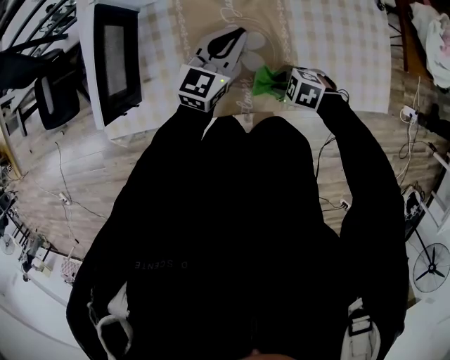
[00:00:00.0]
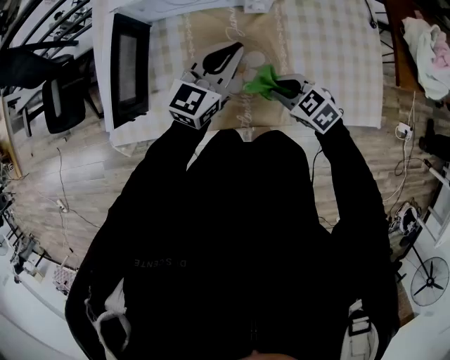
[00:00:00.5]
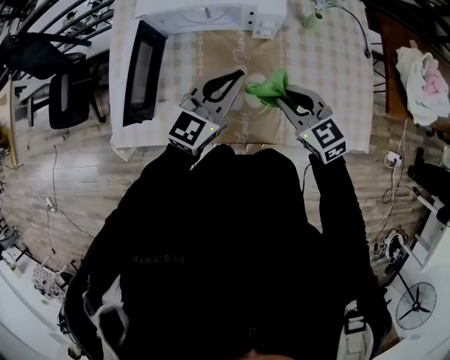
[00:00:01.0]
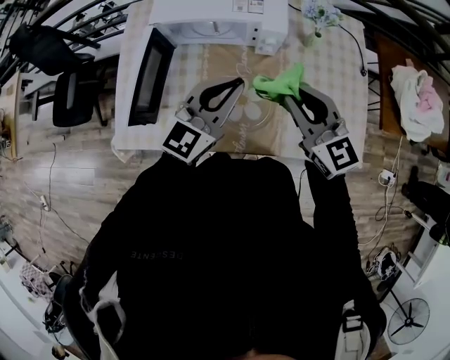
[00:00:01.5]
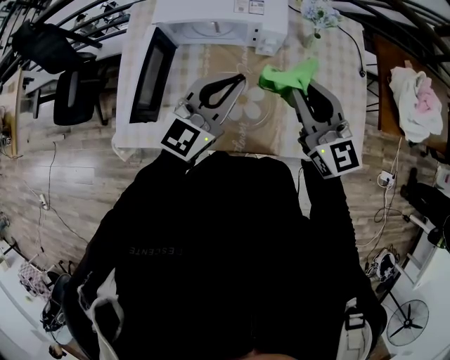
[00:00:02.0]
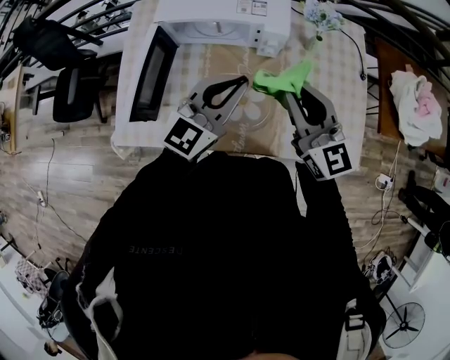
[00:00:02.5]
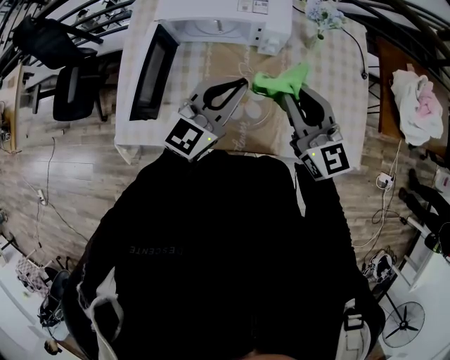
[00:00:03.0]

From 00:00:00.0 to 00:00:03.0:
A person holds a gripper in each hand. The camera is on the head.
From 00:00:00.0 to 00:00:01.5: The right gripper goes approximately 35 cm upward, and points its fingers some 50 degrees further upward; the left gripper moves upward, roughly 20 cm.
From 00:00:01.5 to 00:00:03.0: There are only small adjustments of the grippers.

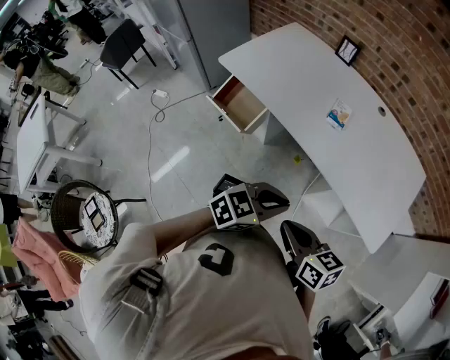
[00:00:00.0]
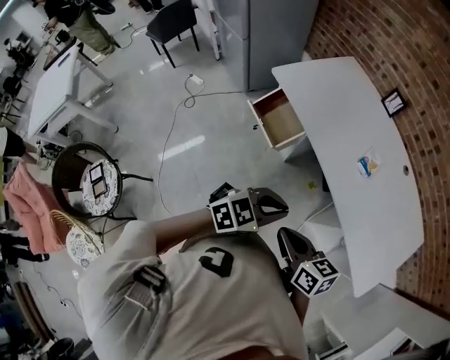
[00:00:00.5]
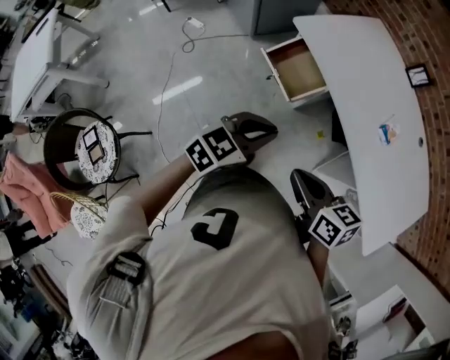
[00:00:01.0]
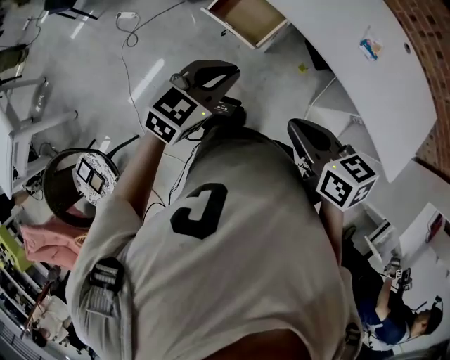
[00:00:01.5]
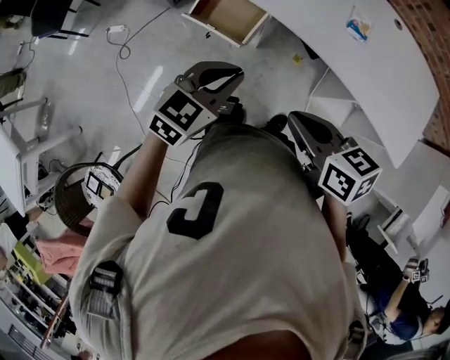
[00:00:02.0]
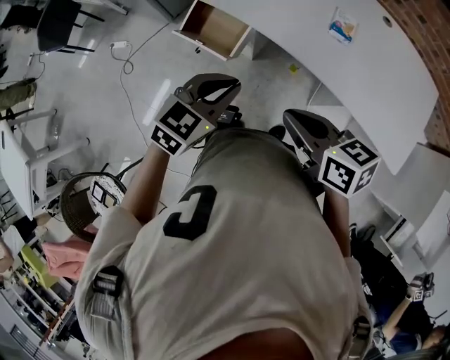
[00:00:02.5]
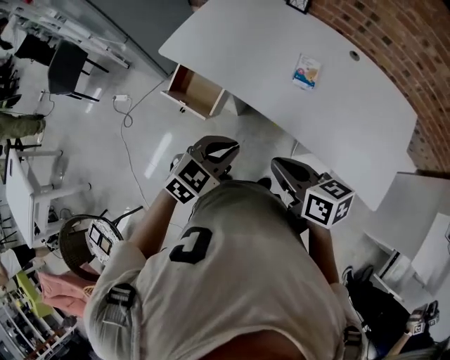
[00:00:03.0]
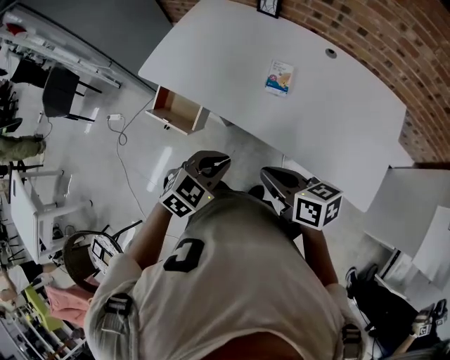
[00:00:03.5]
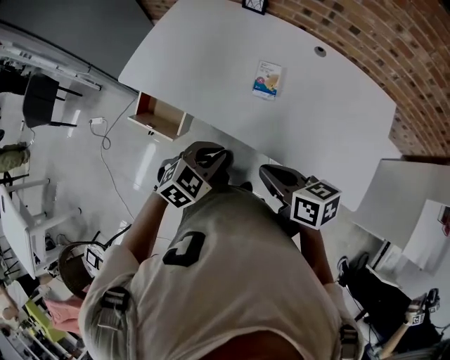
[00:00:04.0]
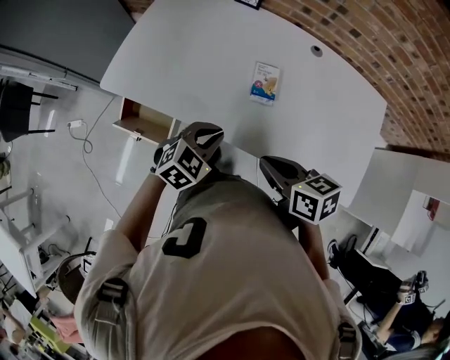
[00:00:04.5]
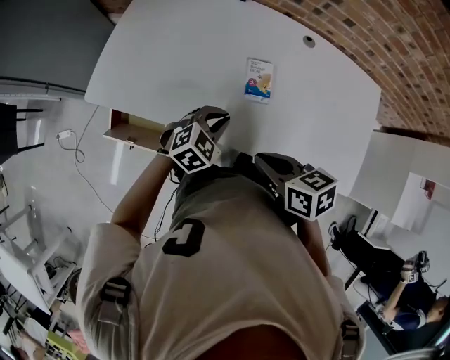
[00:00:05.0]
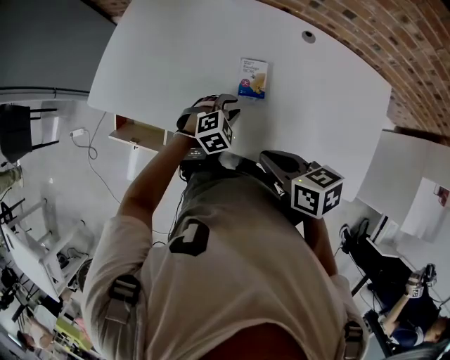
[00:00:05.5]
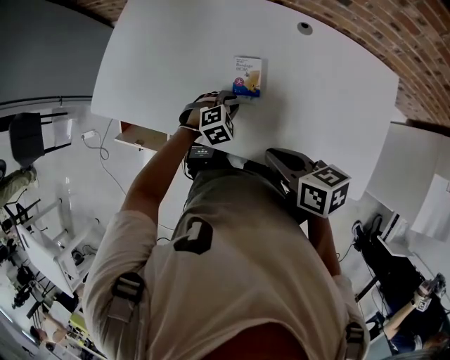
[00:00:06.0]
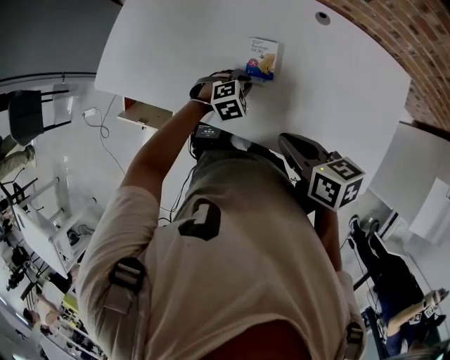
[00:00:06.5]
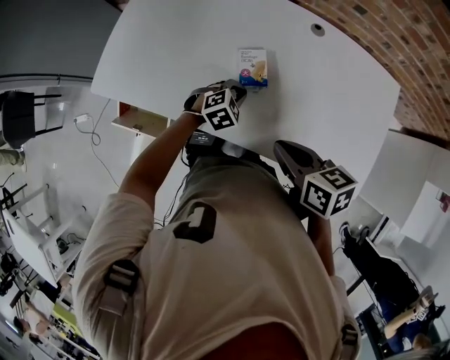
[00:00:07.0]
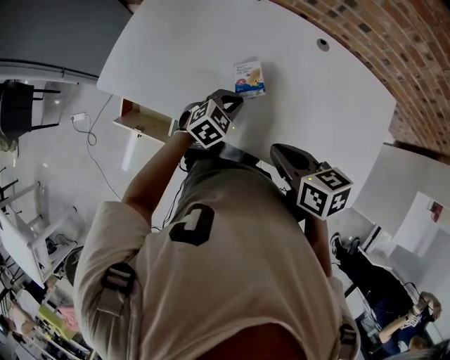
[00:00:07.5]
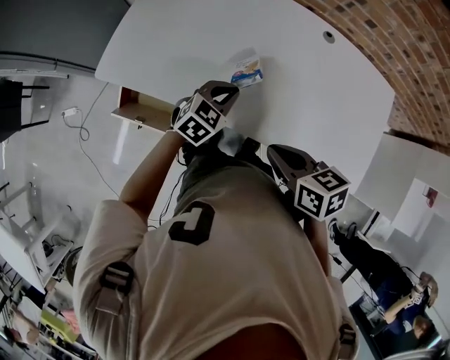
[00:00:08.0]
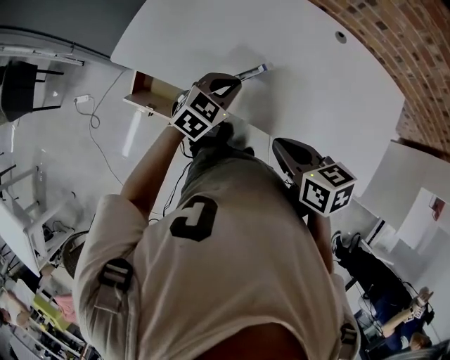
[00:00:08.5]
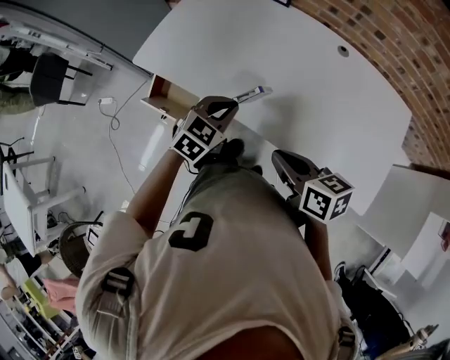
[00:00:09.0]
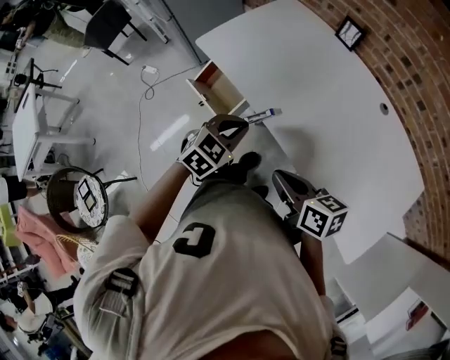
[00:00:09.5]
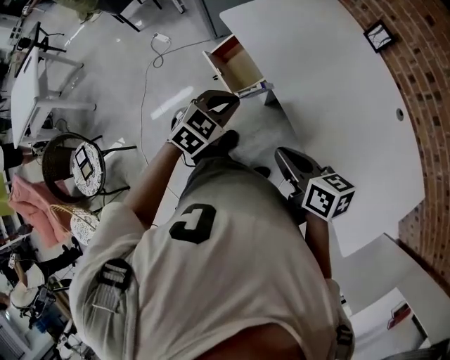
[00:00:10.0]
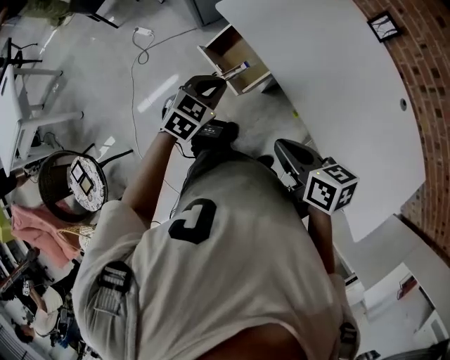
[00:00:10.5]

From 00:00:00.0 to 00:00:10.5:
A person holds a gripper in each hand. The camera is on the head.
From 00:00:00.0 to 00:00:02.0: The grippers both shift to the left and forward by some 25 cm.
From 00:00:02.0 to 00:00:04.0: The left gripper heads to the right, covering approximately 25 cm, and changes its angle by about 20 degrees. Meanwhile the right gripper goes roughly 25 cm to the right and forward.
From 00:00:04.0 to 00:00:06.5: The left gripper heads forward and downward, covering about 30 cm, and changes its angle by approximately 30 degrees. Meanwhile the right gripper is displaced forward by about 15 cm.
From 00:00:06.5 to 00:00:08.5: The right gripper travels to the left and backward by roughly 10 cm, while the left gripper shifts approximately 20 cm upward and to the left, and turns by some 40 degrees.
From 00:00:08.5 to 00:00:10.5: The right gripper moves roughly 20 cm, and turns by about 30 degrees; the left gripper ends up some 30 cm from where it was, and changes its angle by some 30 degrees.

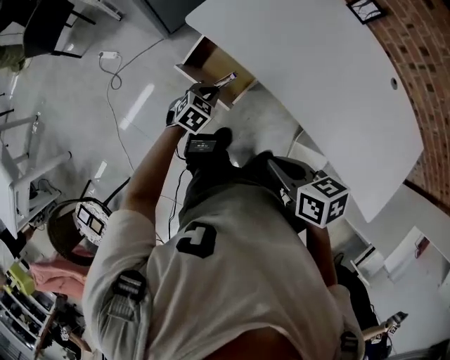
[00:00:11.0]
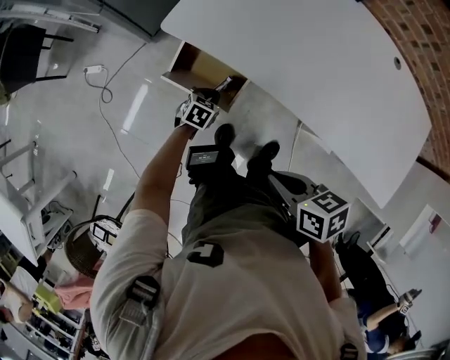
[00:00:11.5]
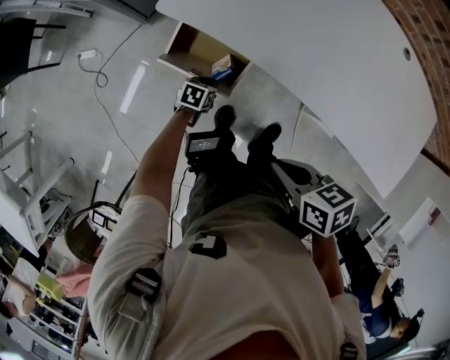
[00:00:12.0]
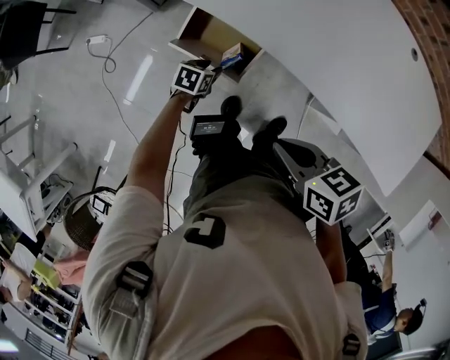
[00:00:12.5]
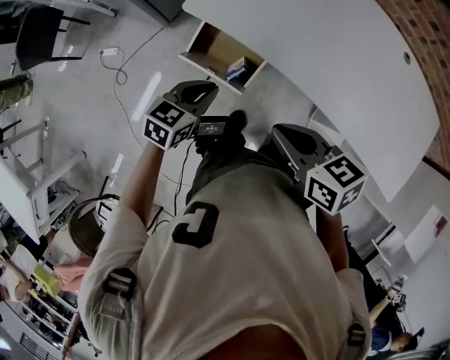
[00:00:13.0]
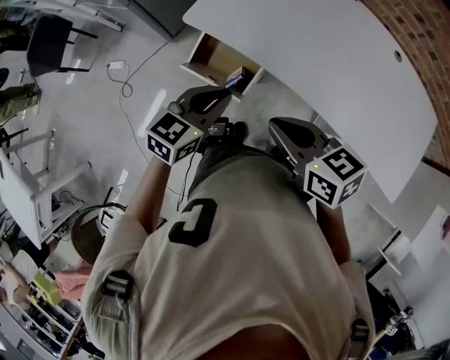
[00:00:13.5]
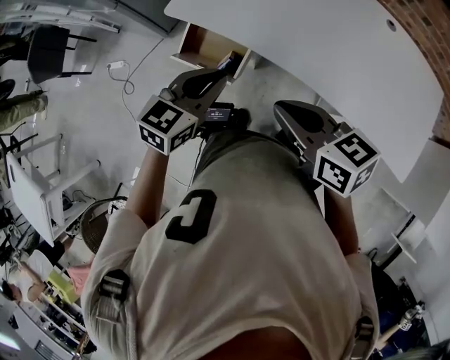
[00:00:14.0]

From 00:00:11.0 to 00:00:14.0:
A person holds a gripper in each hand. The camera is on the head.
From 00:00:11.0 to 00:00:12.5: The left gripper goes about 10 cm downward, rotates approximately 30 degrees, and opens its fingers.
From 00:00:12.5 to 00:00:14.0: The left gripper travels upward by some 35 cm, points its fingers about 30 degrees further upward, and closes its fingers; the right gripper moves upward, approximately 10 cm, and turns by some 20 degrees.

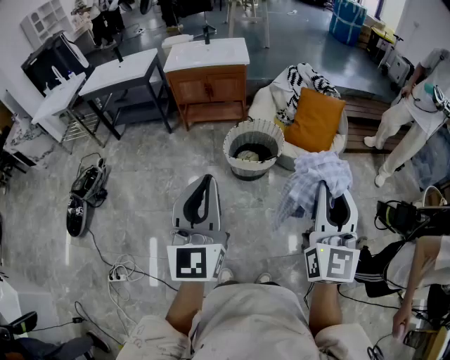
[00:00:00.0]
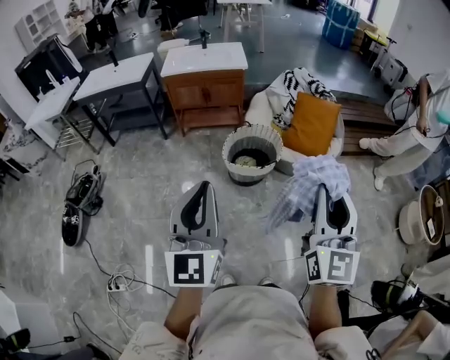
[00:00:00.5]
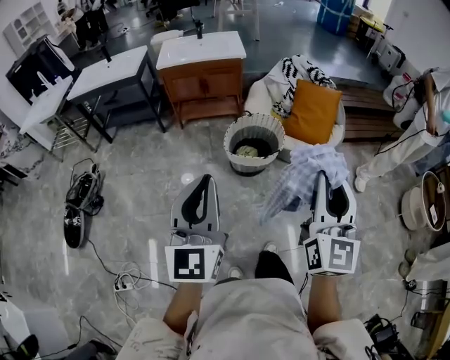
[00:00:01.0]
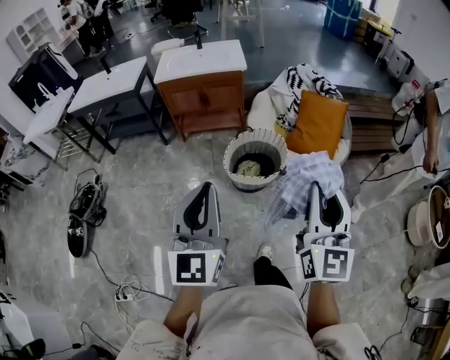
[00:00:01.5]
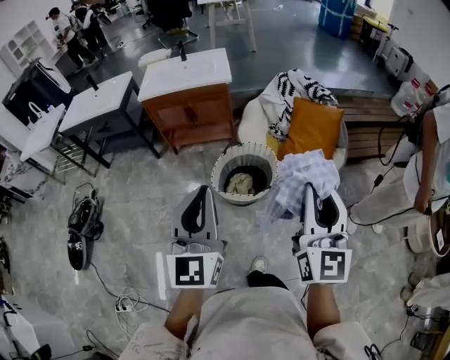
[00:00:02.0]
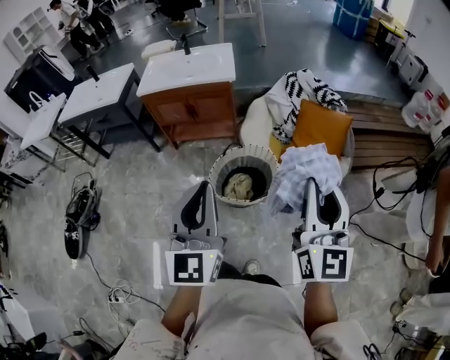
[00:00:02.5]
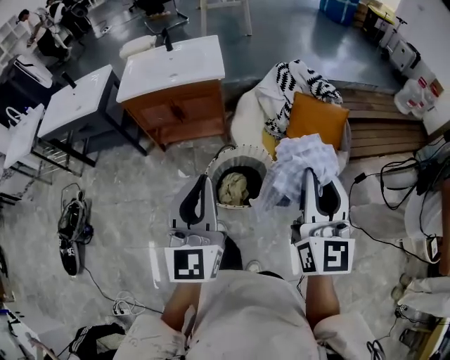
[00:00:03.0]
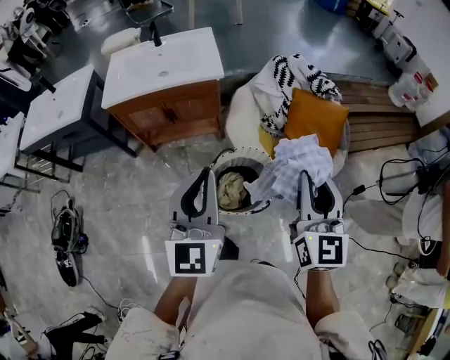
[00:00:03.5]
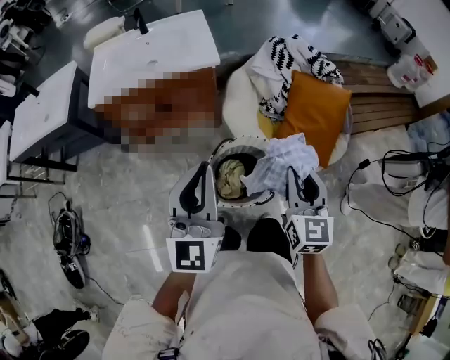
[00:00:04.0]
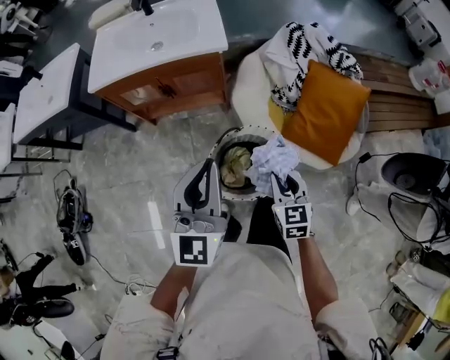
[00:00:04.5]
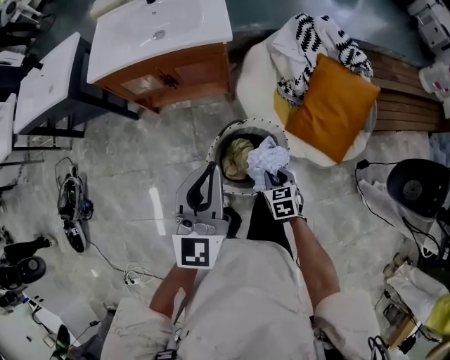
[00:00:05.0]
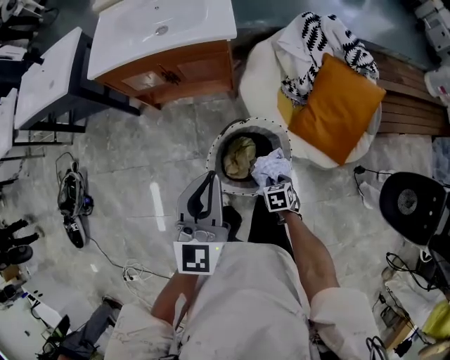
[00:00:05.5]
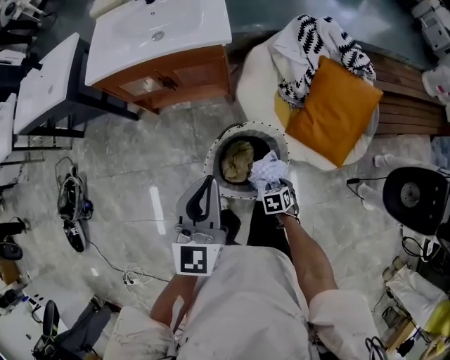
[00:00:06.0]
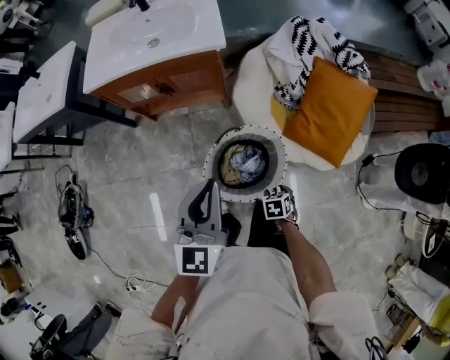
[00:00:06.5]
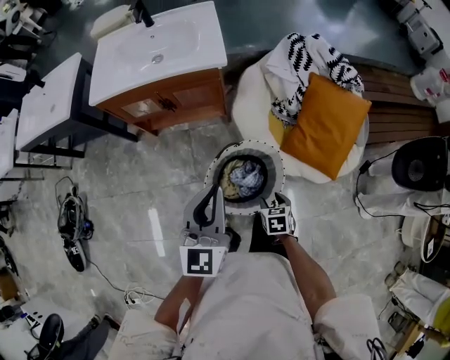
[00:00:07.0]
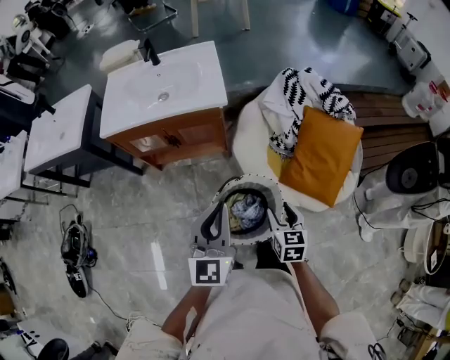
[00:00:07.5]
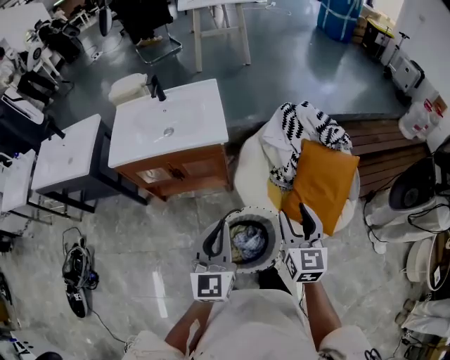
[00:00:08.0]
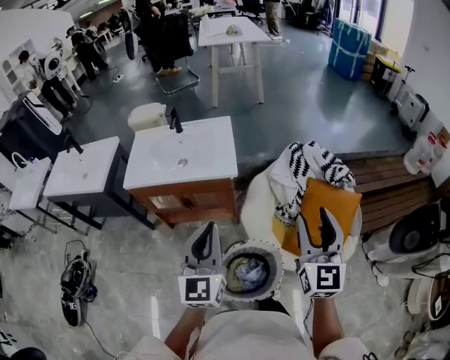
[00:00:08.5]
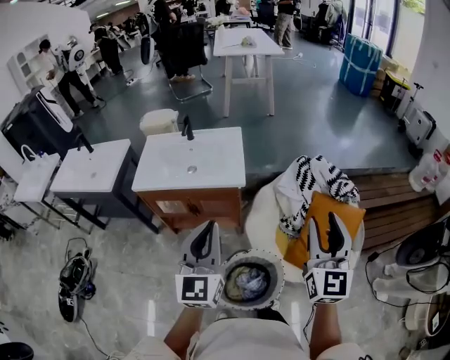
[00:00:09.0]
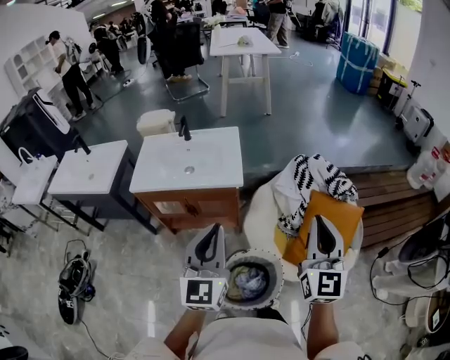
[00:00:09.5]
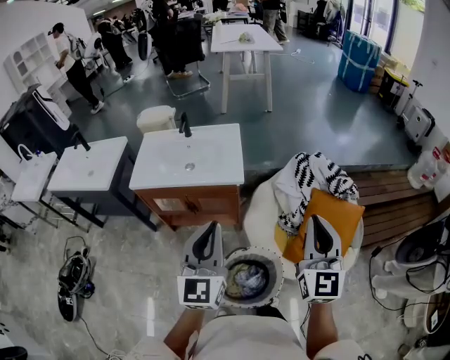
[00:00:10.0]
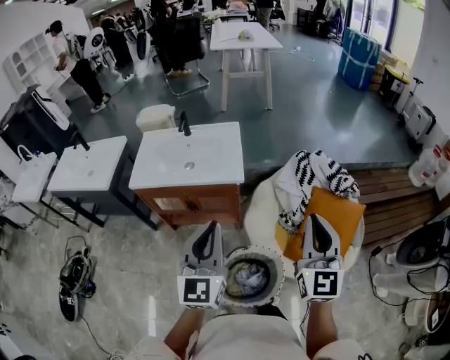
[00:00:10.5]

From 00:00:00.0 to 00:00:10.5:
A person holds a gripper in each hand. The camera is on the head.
From 00:00:00.0 to 00:00:02.0: The two grippers go approximately 25 cm forward.
From 00:00:02.0 to 00:00:04.0: The right gripper travels forward and downward by approximately 40 cm, and rotates roughly 30 degrees. The left gripper travels forward by some 35 cm.
From 00:00:04.0 to 00:00:06.5: The right gripper moves downward, roughly 40 cm, points its fingers roughly 60 degrees further downward, and opens up; the left gripper shifts about 10 cm downward.
From 00:00:06.5 to 00:00:08.5: The left gripper is displaced upward by roughly 15 cm. Meanwhile the right gripper moves upward, some 60 cm, and points its fingers some 80 degrees further upward.
From 00:00:08.5 to 00:00:10.5: The right gripper closes its fingers.
